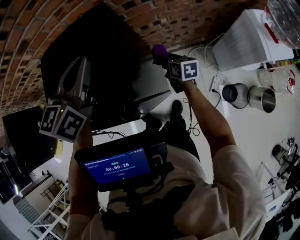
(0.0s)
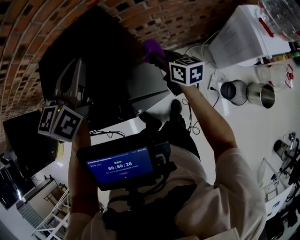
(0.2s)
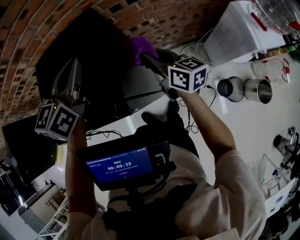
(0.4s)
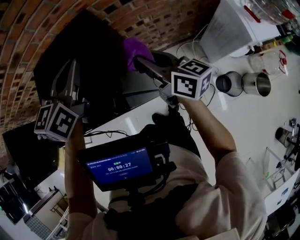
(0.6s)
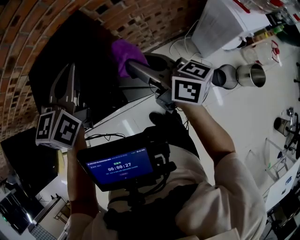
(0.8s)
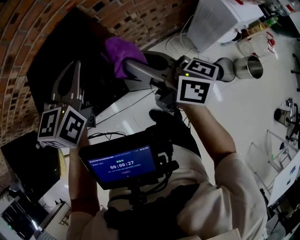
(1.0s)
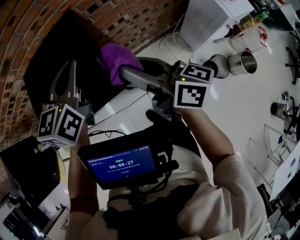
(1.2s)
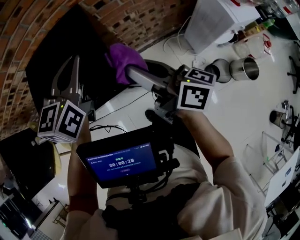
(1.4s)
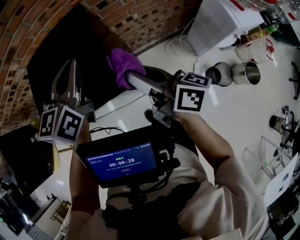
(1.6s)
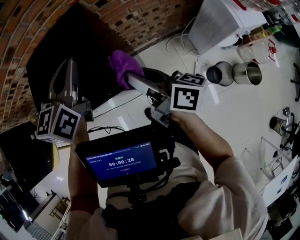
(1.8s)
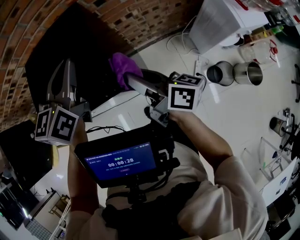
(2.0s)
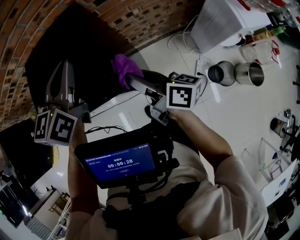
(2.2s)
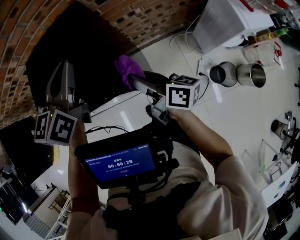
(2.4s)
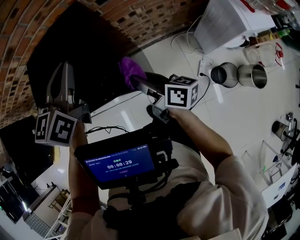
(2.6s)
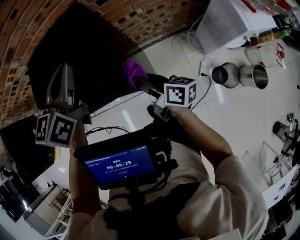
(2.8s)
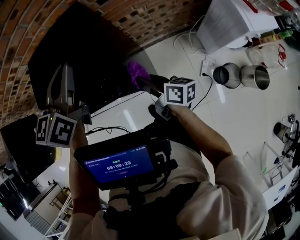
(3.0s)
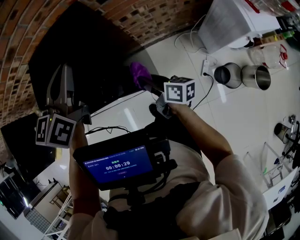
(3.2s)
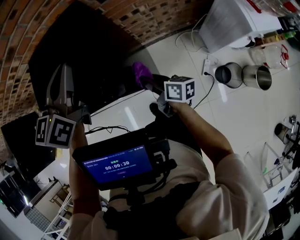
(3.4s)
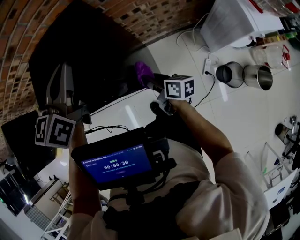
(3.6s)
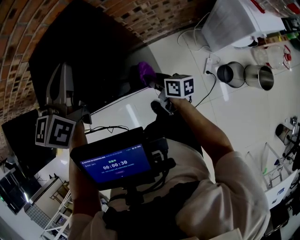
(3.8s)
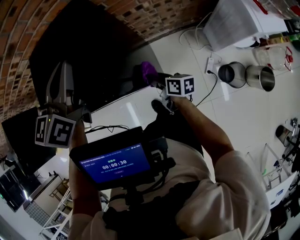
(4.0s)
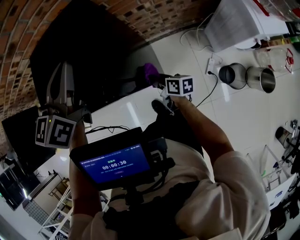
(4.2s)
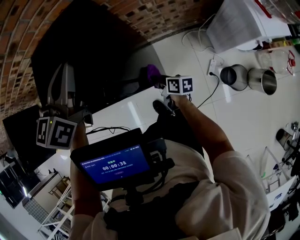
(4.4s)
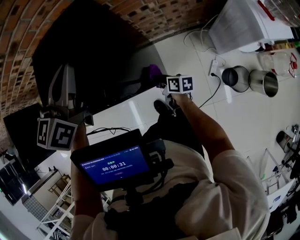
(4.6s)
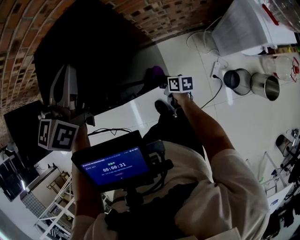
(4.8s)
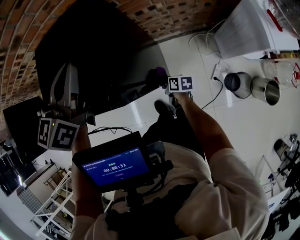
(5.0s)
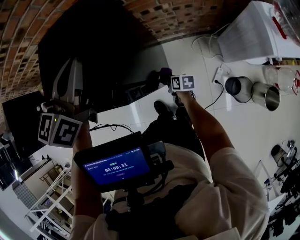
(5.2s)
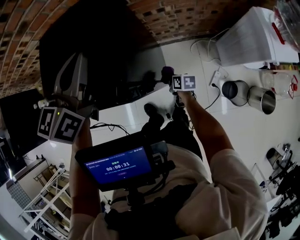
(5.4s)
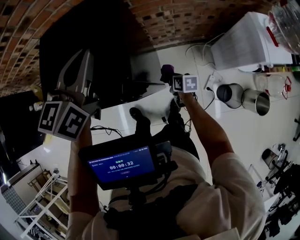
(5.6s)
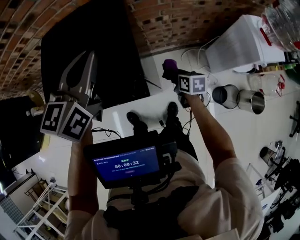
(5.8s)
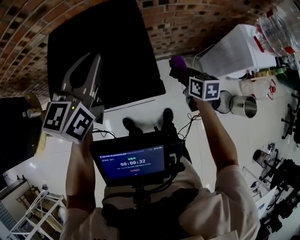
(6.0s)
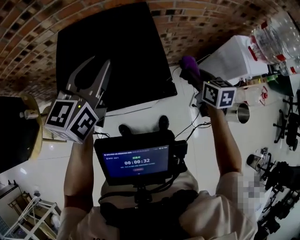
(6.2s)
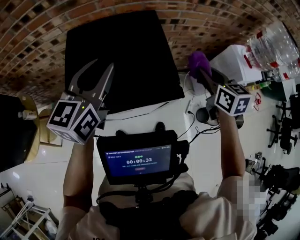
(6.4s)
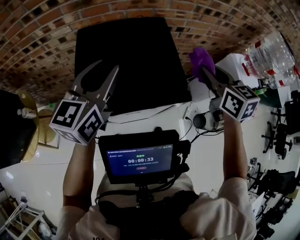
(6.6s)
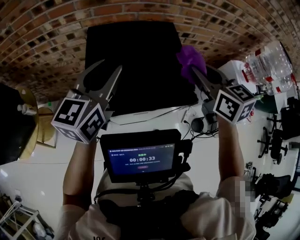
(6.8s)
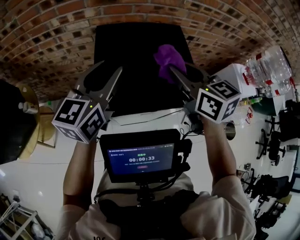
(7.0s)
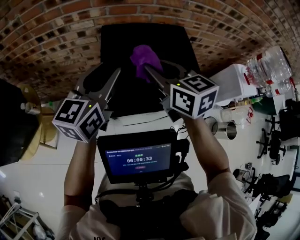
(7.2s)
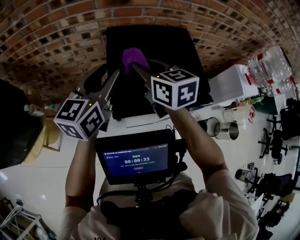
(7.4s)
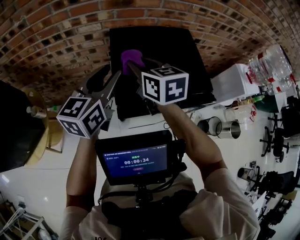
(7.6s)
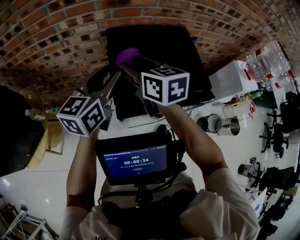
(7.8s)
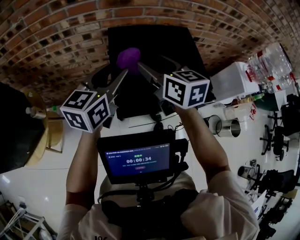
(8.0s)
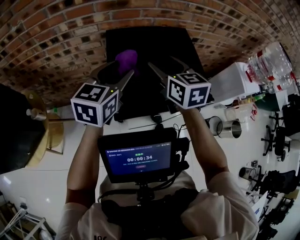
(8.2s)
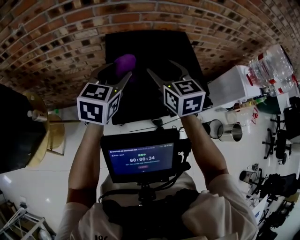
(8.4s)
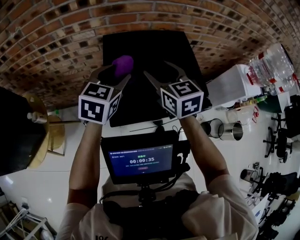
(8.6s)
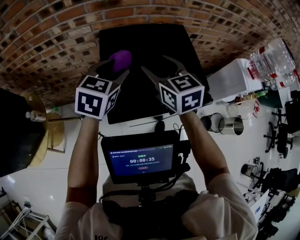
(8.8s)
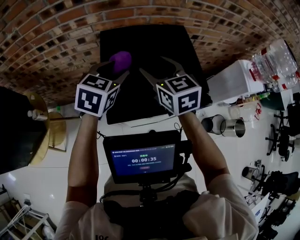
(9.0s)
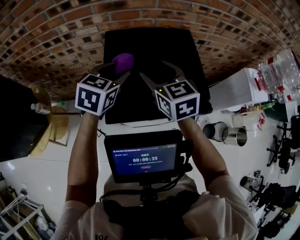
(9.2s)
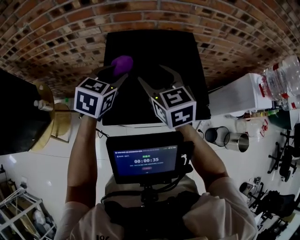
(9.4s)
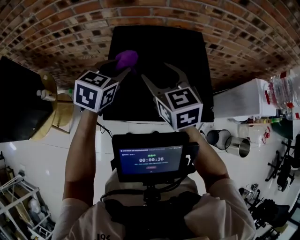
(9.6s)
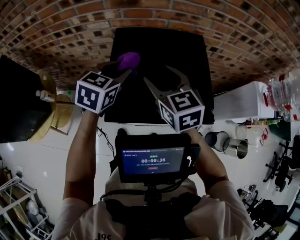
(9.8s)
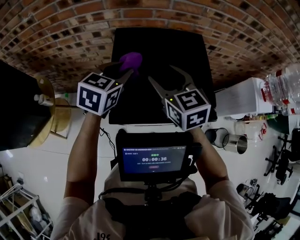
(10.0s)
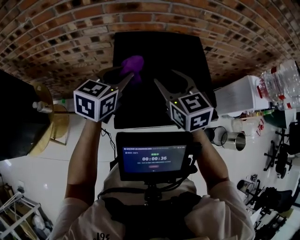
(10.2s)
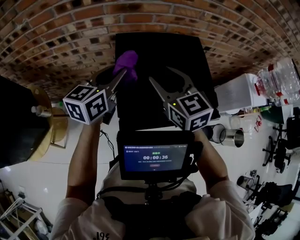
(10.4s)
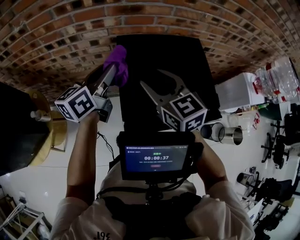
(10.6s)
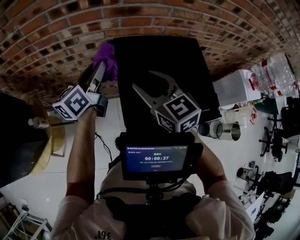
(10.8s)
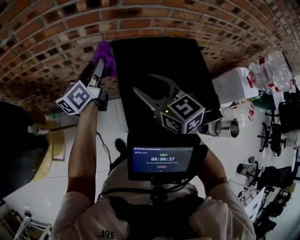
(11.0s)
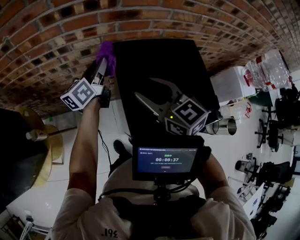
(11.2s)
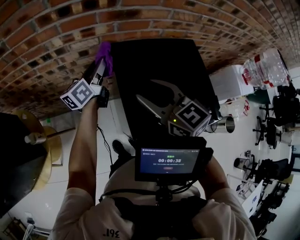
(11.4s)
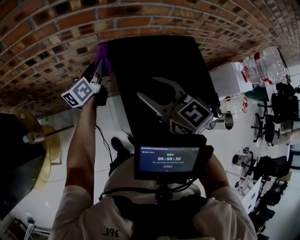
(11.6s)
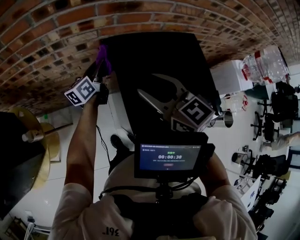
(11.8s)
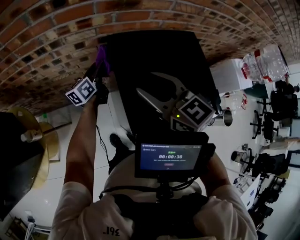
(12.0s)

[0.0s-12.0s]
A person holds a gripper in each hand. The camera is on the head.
0.0s to 1.6s: The right gripper heads upward and backward, covering some 35 cm, and points its fingers approximately 40 degrees further upward. The left gripper moves backward, some 5 cm.
1.6s to 3.0s: The right gripper is displaced downward by some 20 cm.
3.0s to 4.4s: The right gripper goes some 15 cm downward.
4.4s to 6.0s: The right gripper heads upward and to the right, covering roughly 15 cm, and rotates about 40 degrees, while the left gripper shifts about 5 cm to the left.
6.0s to 7.6s: The left gripper moves to the left, roughly 25 cm, and opens; the right gripper goes some 50 cm to the left and upward, and changes its angle by approximately 20 degrees.
7.6s to 9.0s: The right gripper shifts approximately 10 cm to the right, and opens its fingers. Meanwhile the left gripper travels to the right and downward by some 10 cm, and rotates roughly 30 degrees.
9.0s to 10.4s: The left gripper ends up roughly 5 cm from where it was, rotates roughly 30 degrees, and closes up.
10.4s to 12.0s: The left gripper is displaced downward and forward by some 25 cm, and swivels some 30 degrees; the right gripper shifts roughly 5 cm to the left.

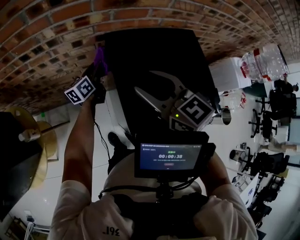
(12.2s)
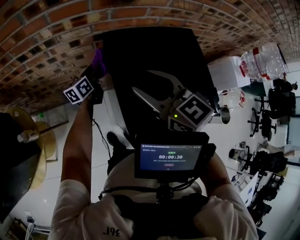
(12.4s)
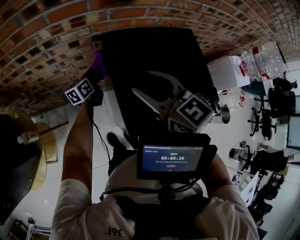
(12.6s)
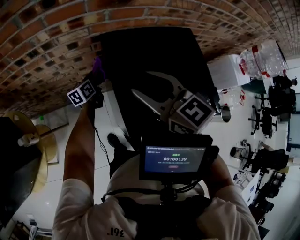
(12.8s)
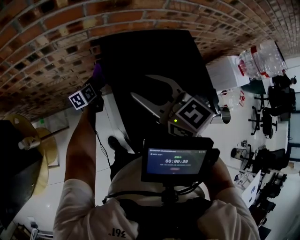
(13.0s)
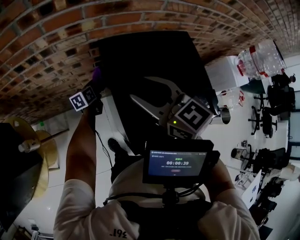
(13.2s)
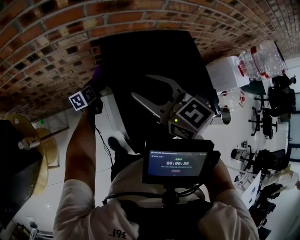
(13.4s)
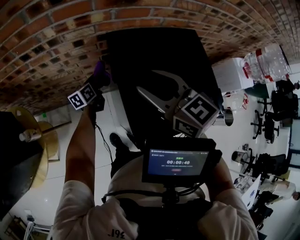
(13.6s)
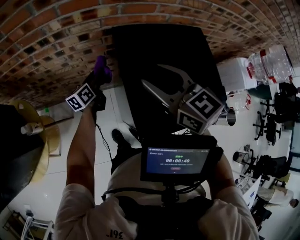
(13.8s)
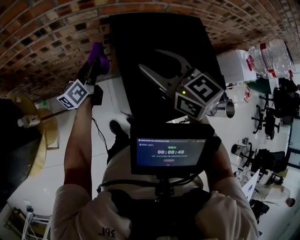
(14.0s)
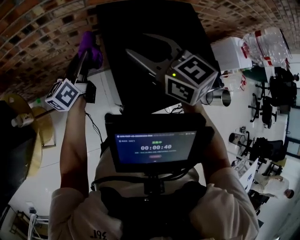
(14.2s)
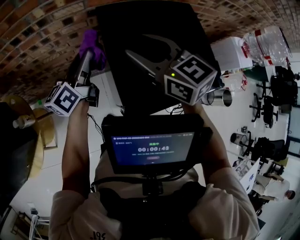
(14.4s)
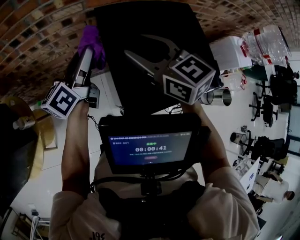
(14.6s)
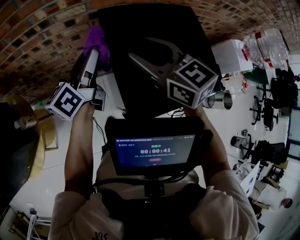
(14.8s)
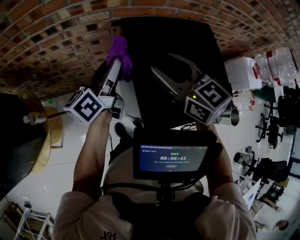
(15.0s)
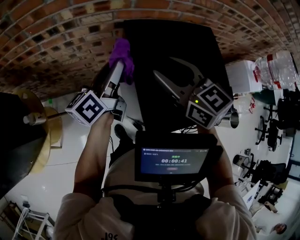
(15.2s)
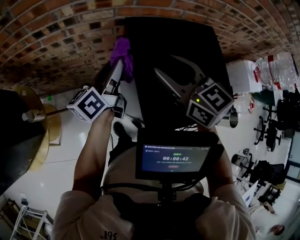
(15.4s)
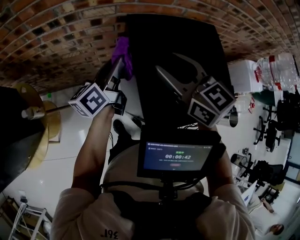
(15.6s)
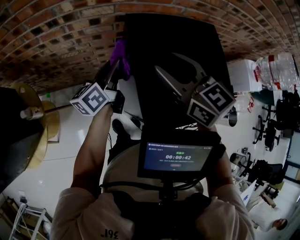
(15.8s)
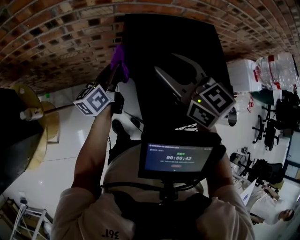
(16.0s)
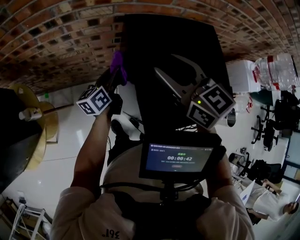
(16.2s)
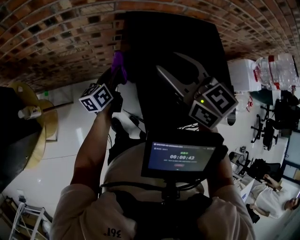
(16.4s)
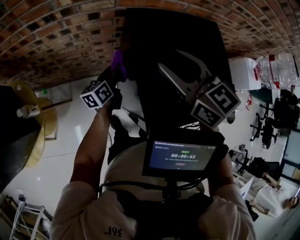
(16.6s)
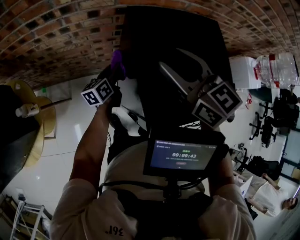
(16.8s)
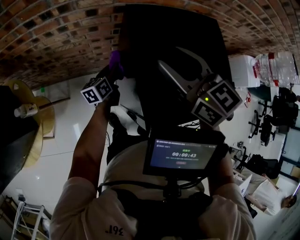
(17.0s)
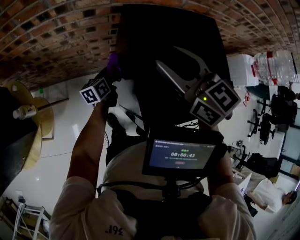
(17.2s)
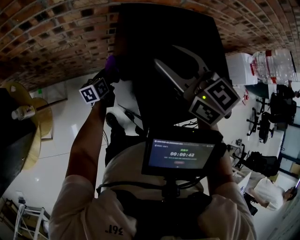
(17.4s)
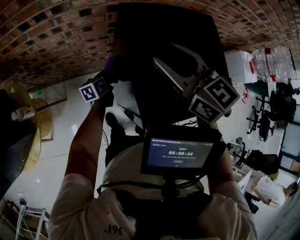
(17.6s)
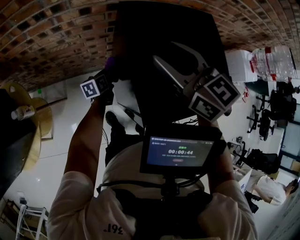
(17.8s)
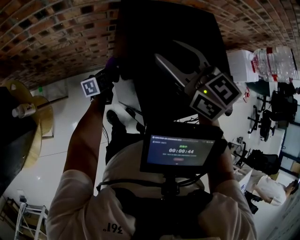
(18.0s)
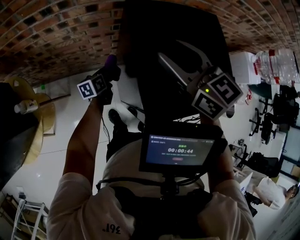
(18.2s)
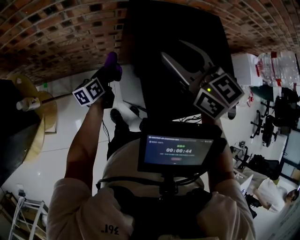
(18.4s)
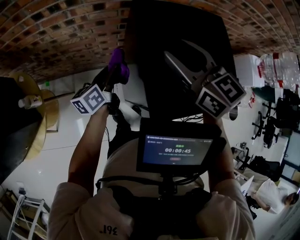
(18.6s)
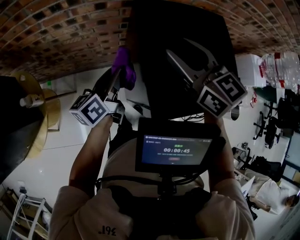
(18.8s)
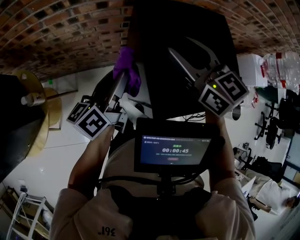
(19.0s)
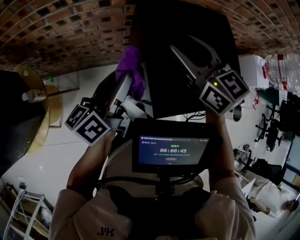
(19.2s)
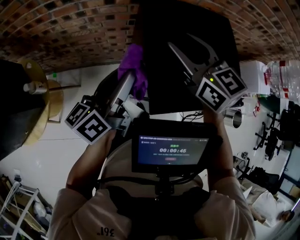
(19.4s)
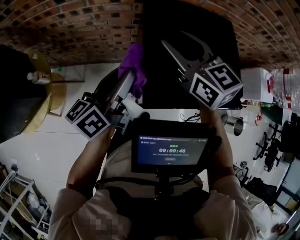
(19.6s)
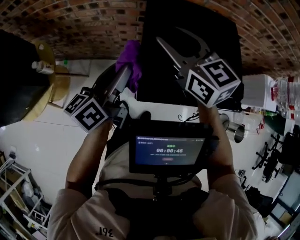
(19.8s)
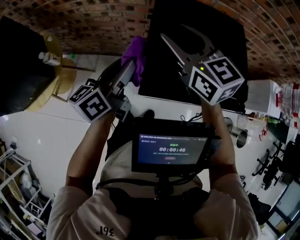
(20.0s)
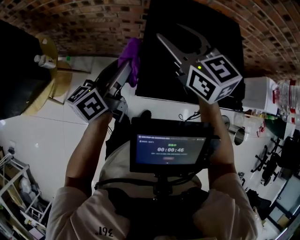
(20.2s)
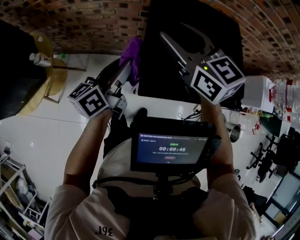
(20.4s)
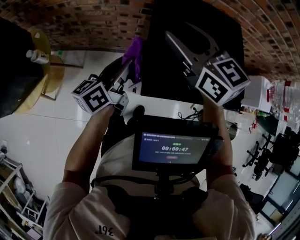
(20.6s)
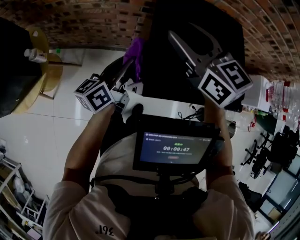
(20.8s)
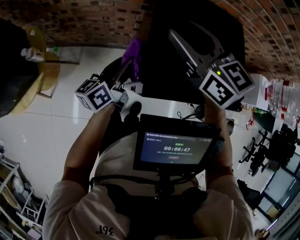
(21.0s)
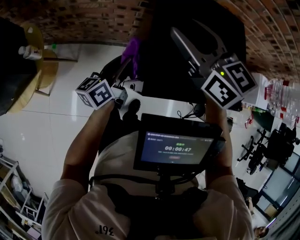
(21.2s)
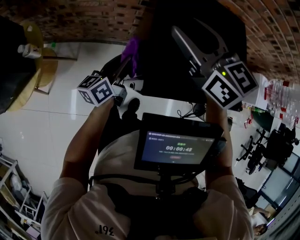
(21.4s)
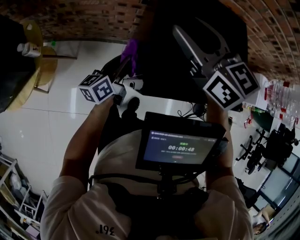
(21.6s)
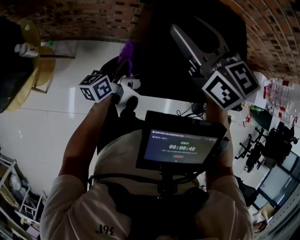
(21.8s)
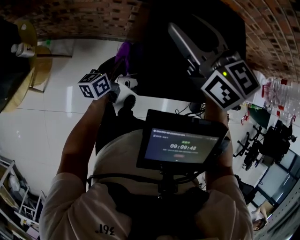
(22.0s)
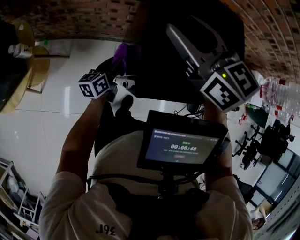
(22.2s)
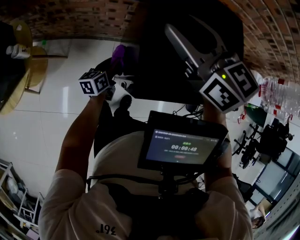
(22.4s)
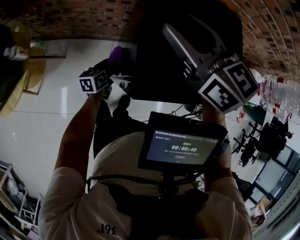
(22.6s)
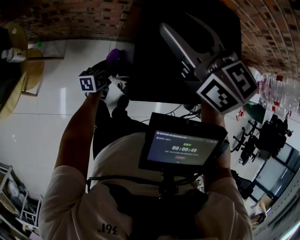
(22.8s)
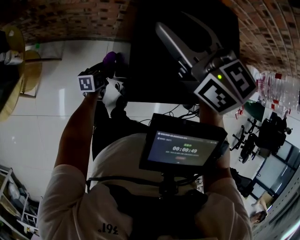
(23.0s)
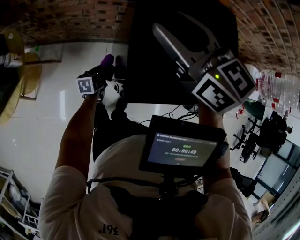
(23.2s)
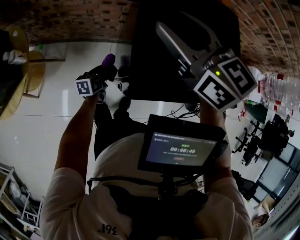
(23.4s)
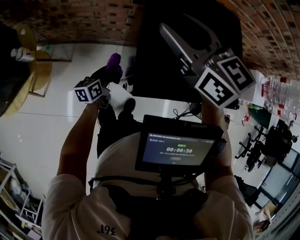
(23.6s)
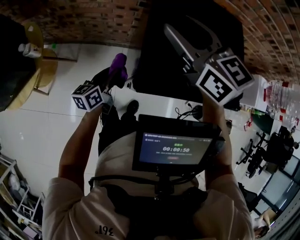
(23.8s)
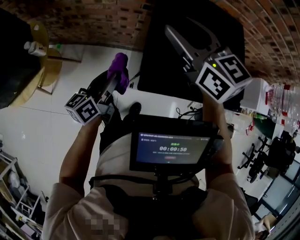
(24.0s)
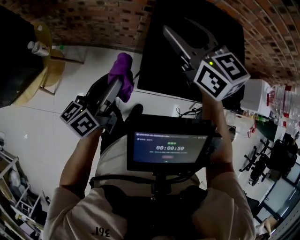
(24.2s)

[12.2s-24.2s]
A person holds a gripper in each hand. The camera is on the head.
12.2s to 13.8s: The left gripper moves some 15 cm downward and comes back.
13.8s to 15.2s: The left gripper moves upward, some 20 cm.
15.2s to 16.6s: The left gripper heads downward, covering about 20 cm.
16.6s to 18.2s: The left gripper heads downward, covering some 10 cm.
18.2s to 19.8s: The left gripper is displaced upward and backward by about 35 cm, and swivels about 30 degrees.
19.8s to 21.2s: The left gripper heads downward, covering some 10 cm.
21.2s to 22.6s: The left gripper heads downward, covering roughly 20 cm, and changes its angle by about 20 degrees.
22.6s to 24.2s: The left gripper shifts approximately 30 cm upward, and swivels roughly 30 degrees.
